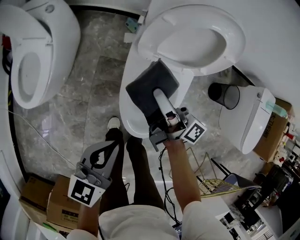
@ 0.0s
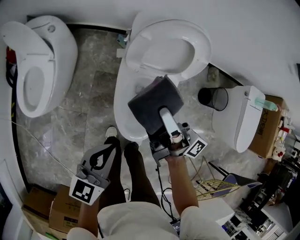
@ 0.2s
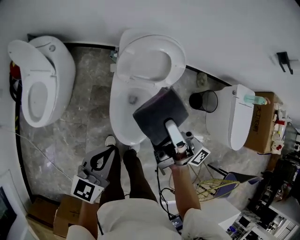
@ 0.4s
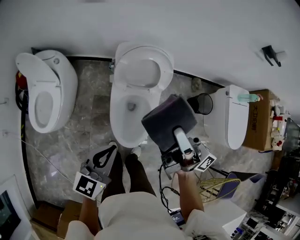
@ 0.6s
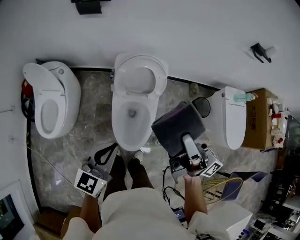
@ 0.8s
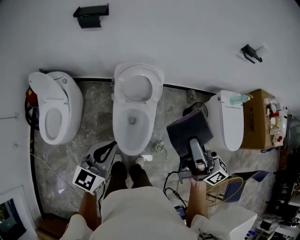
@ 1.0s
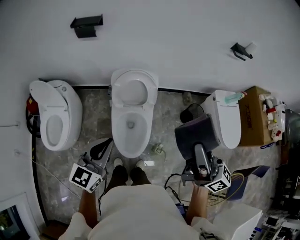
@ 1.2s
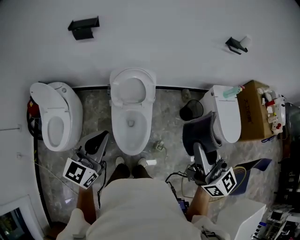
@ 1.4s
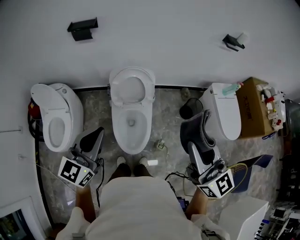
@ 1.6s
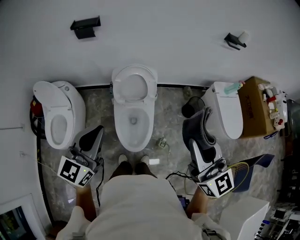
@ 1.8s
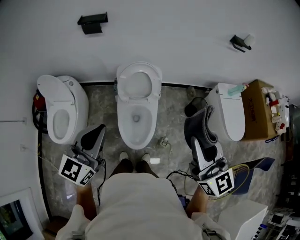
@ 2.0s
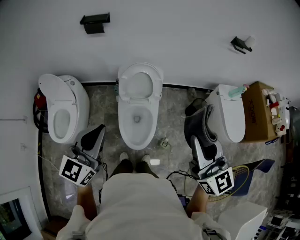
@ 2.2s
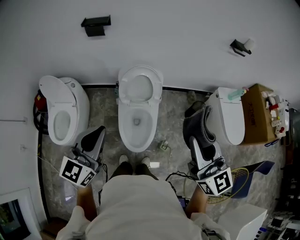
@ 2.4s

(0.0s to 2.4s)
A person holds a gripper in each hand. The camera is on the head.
0.0s - 1.2s: The right gripper moves upward, to the right and backward, about 60 cm, and twists approximately 50 degrees counterclockwise, seen from behind. Meanwhile the left gripper goes some 35 cm upward, and changes its angle by about 30 degrees.
1.2s - 2.4s: The left gripper travels upward by approximately 10 cm. Meanwhile the right gripper is displaced backward by about 5 cm, and swivels some 40 degrees.

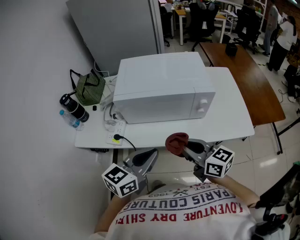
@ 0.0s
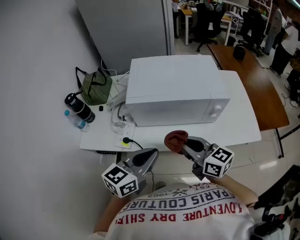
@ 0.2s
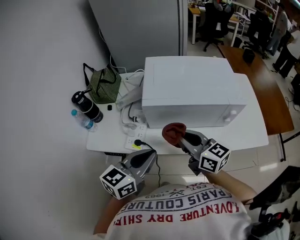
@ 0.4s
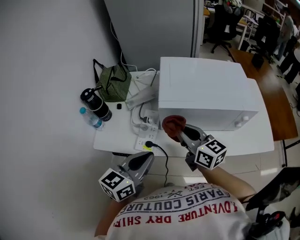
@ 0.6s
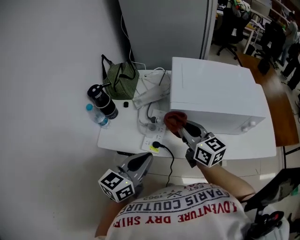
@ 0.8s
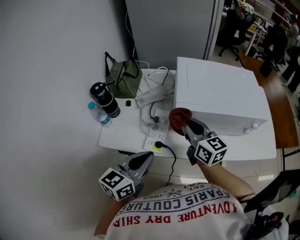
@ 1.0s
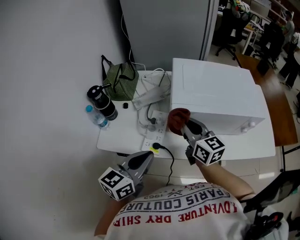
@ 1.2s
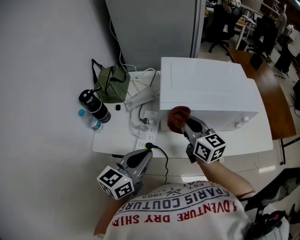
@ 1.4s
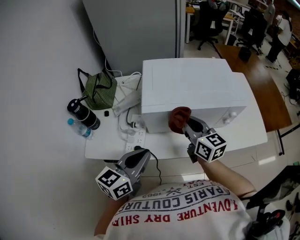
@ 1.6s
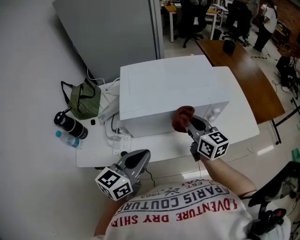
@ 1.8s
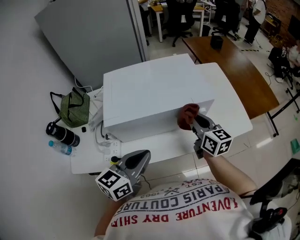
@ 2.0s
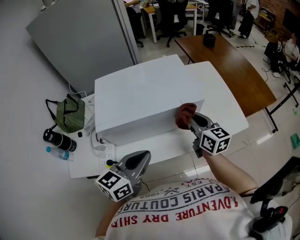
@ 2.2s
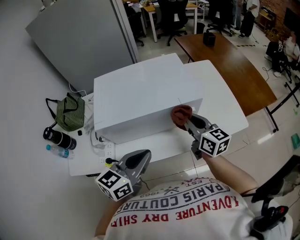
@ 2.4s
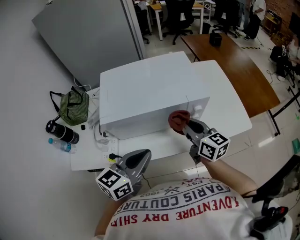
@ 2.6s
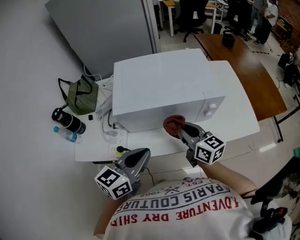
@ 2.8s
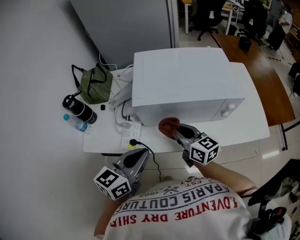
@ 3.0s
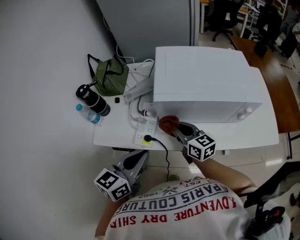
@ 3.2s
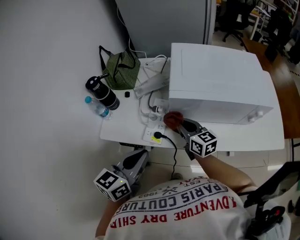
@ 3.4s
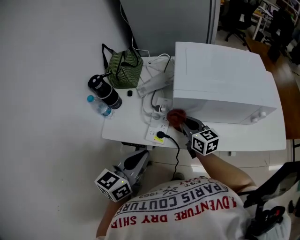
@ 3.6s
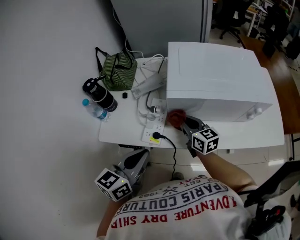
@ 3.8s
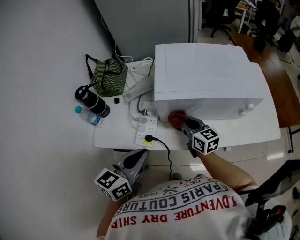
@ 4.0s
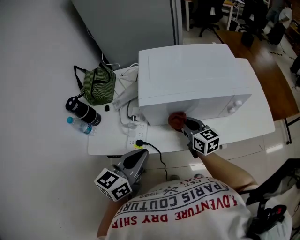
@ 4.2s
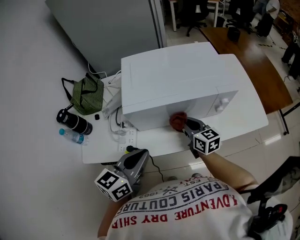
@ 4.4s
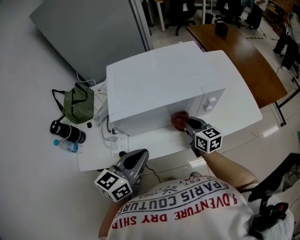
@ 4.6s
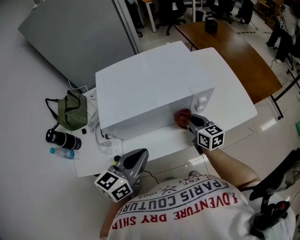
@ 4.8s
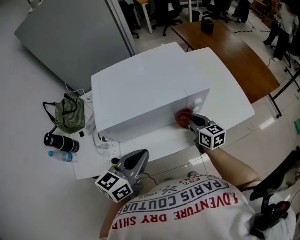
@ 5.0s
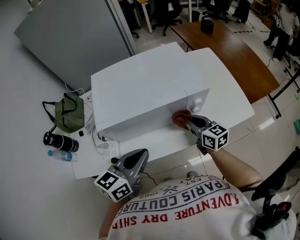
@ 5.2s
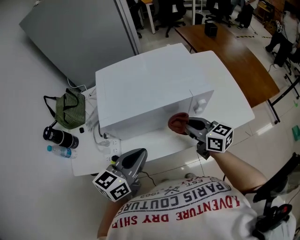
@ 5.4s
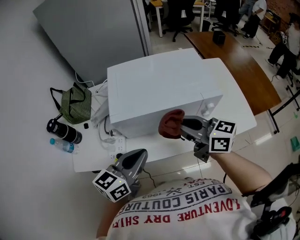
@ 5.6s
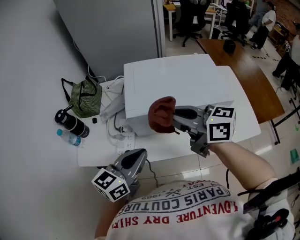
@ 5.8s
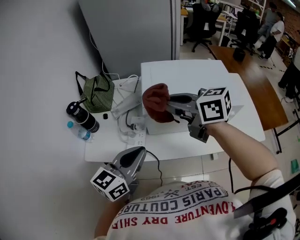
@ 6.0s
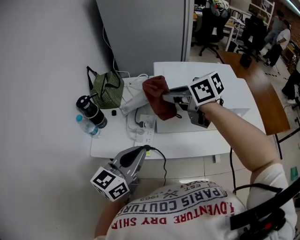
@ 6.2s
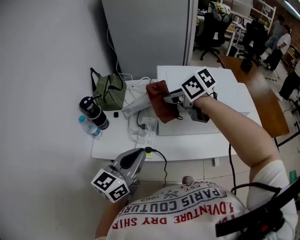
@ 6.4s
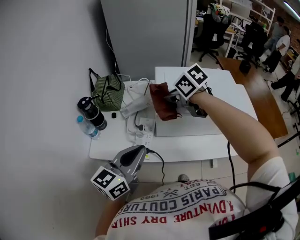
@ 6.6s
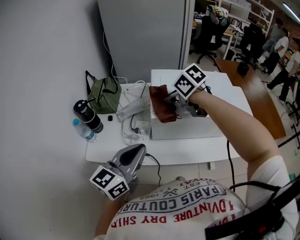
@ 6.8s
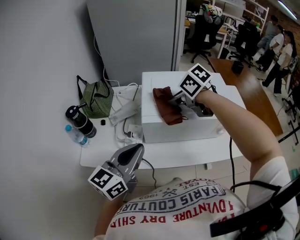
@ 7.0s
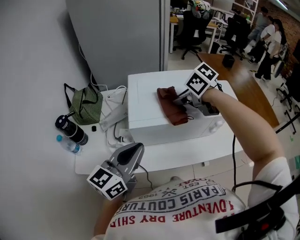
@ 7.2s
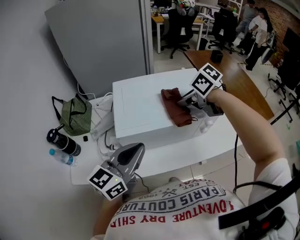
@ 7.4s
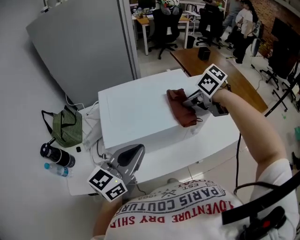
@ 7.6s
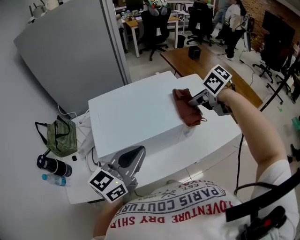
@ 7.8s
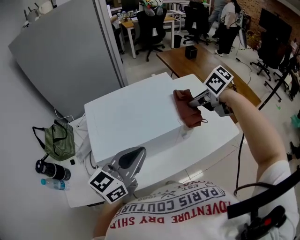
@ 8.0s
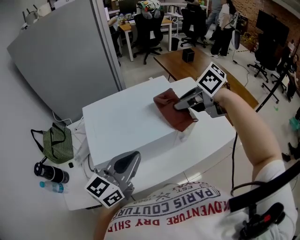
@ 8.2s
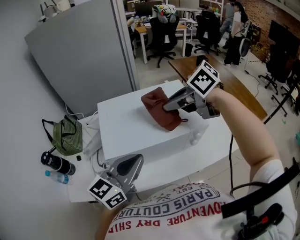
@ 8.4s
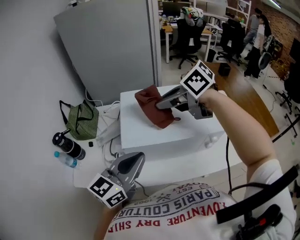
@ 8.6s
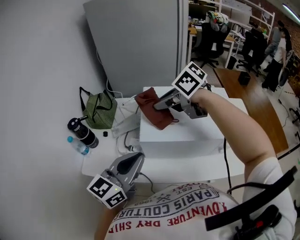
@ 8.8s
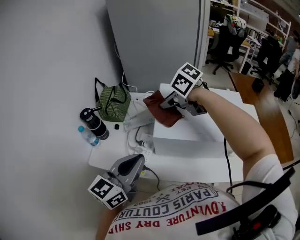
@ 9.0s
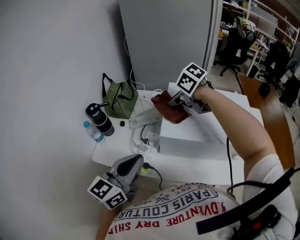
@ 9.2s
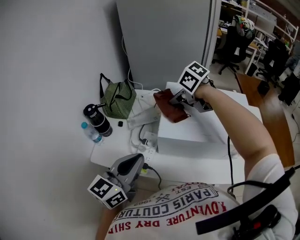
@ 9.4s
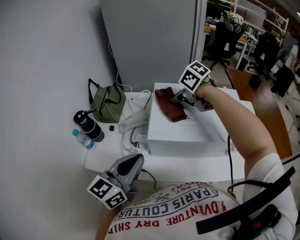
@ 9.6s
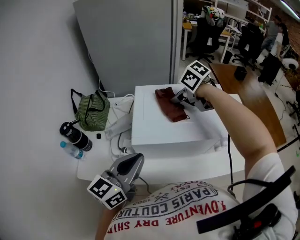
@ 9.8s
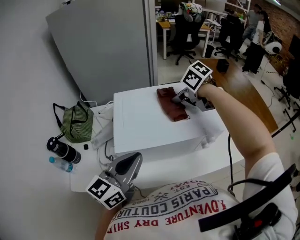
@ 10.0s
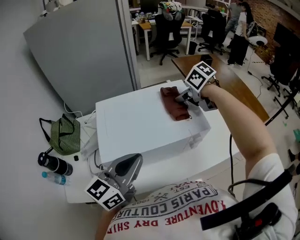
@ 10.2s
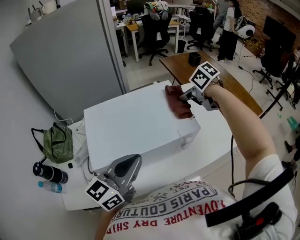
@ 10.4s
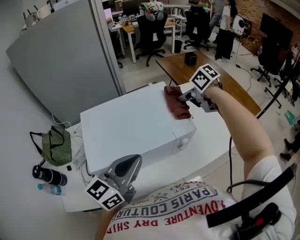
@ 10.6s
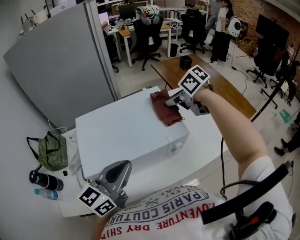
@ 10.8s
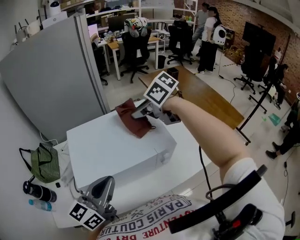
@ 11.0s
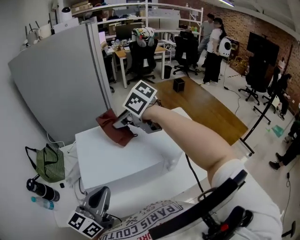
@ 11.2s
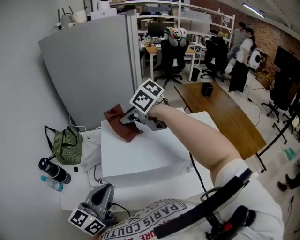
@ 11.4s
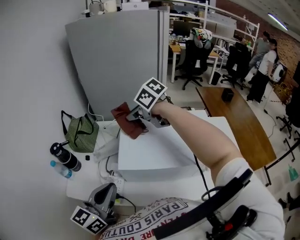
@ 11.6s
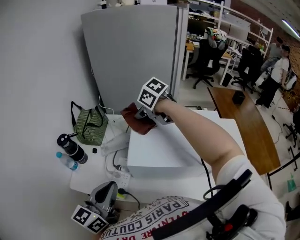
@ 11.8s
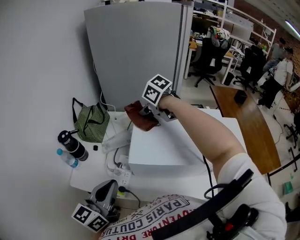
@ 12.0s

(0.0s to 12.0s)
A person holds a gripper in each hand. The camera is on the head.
0.0s - 1.6s: The right gripper moves forward and to the left, approximately 20 cm, and turns by approximately 20 degrees. Meanwhile the left gripper moves to the left and forward, approximately 20 cm.
1.6s - 3.0s: The left gripper travels to the right and back again, about 15 cm each way; the right gripper shifts about 5 cm downward, and moves about 20 cm to the right and comes back.
3.0s - 4.4s: The right gripper goes approximately 10 cm to the right and downward. The left gripper moves about 10 cm to the left and comes back.
4.4s - 6.0s: The right gripper travels upward by some 25 cm, and swivels about 30 degrees; the left gripper changes place by about 10 cm.
6.0s - 7.6s: The left gripper travels to the right by about 15 cm. Meanwhile the right gripper shifts roughly 30 cm to the right, and tips its fingers downward by approximately 40 degrees.
7.6s - 9.0s: The left gripper moves approximately 15 cm, and changes its angle by roughly 30 degrees; the right gripper goes upward and returns, approximately 10 cm each way, and turns by roughly 30 degrees.
9.0s - 10.4s: The left gripper moves some 20 cm, and changes its angle by approximately 30 degrees, while the right gripper shifts by some 40 cm, and rotates about 40 degrees.
10.4s - 12.0s: The left gripper ends up roughly 25 cm from where it was, and changes its angle by some 40 degrees. Meanwhile the right gripper goes upward and returns, approximately 10 cm each way, and changes its angle by roughly 40 degrees.

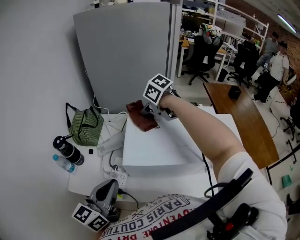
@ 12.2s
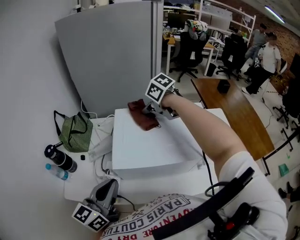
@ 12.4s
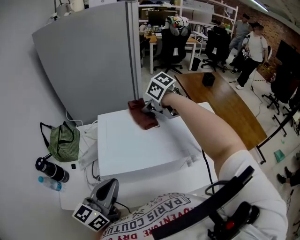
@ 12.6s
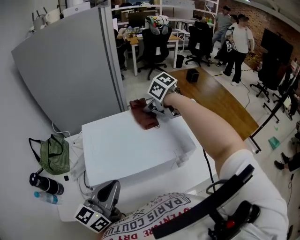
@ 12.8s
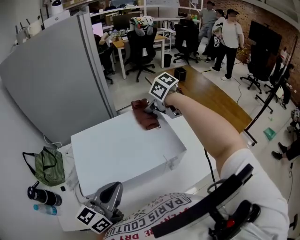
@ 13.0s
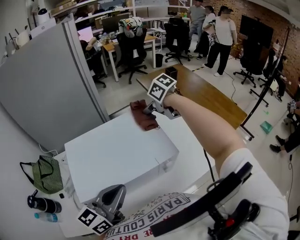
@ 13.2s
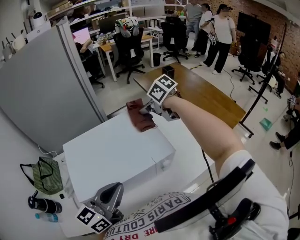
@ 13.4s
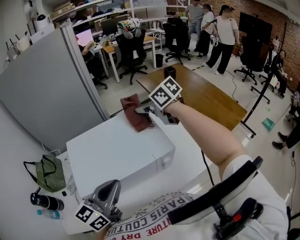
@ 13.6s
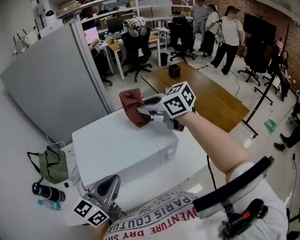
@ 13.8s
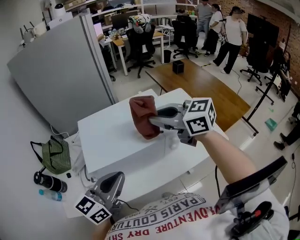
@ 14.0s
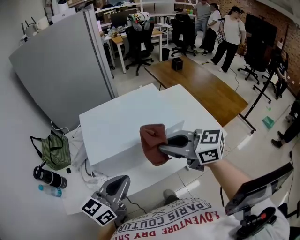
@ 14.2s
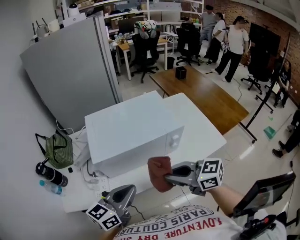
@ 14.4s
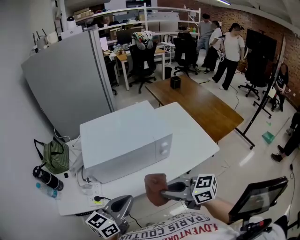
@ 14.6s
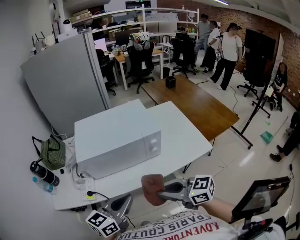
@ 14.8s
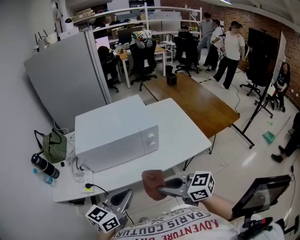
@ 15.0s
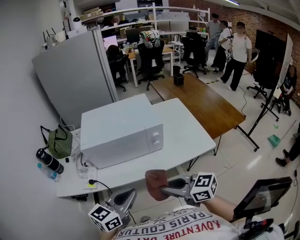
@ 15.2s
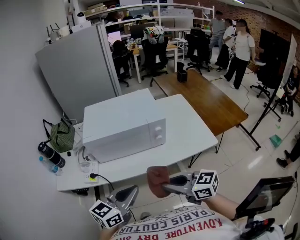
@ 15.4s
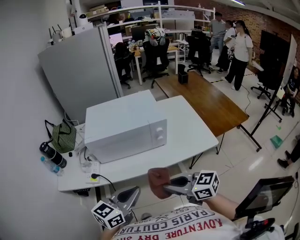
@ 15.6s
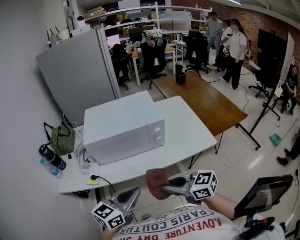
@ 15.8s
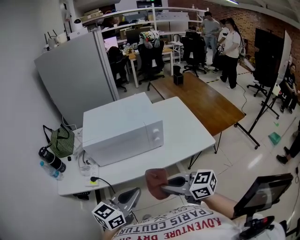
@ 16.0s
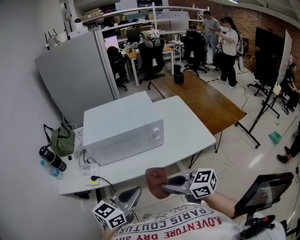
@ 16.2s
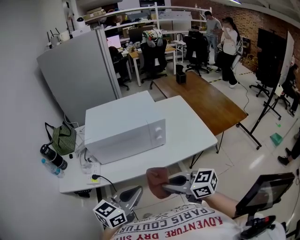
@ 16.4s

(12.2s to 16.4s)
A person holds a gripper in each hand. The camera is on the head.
12.2s - 13.6s: The left gripper changes place by roughly 20 cm, and rotates roughly 30 degrees, while the right gripper moves about 35 cm, and rotates roughly 40 degrees.
13.6s - 15.0s: The right gripper is displaced backward by roughly 50 cm, while the left gripper heads backward, covering about 25 cm.
15.0s - 16.4s: The grippers move only a little.

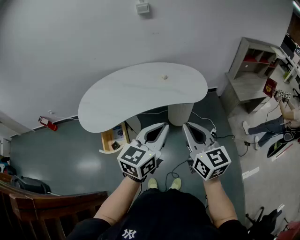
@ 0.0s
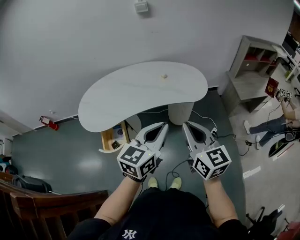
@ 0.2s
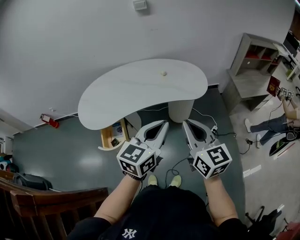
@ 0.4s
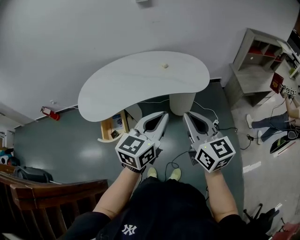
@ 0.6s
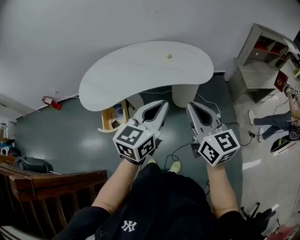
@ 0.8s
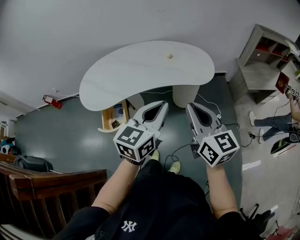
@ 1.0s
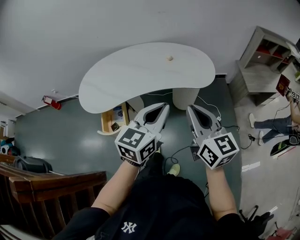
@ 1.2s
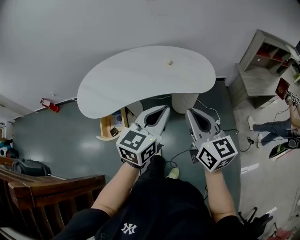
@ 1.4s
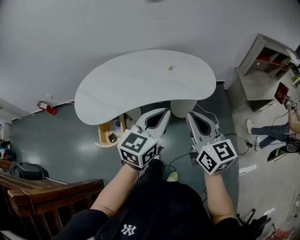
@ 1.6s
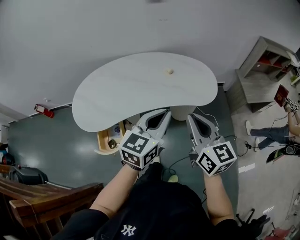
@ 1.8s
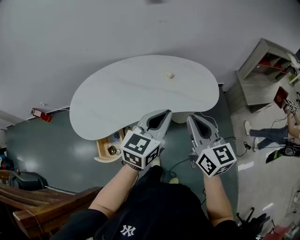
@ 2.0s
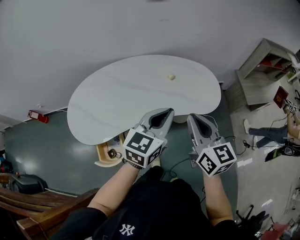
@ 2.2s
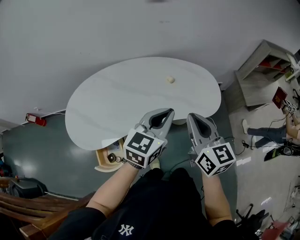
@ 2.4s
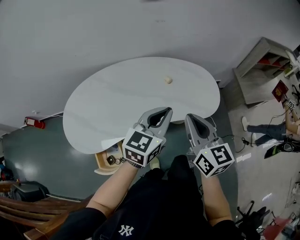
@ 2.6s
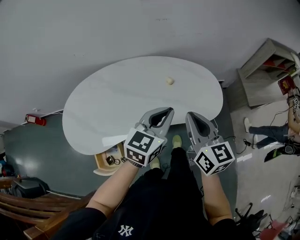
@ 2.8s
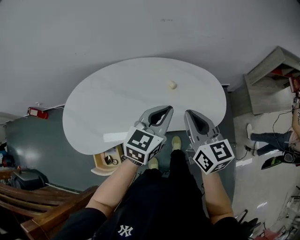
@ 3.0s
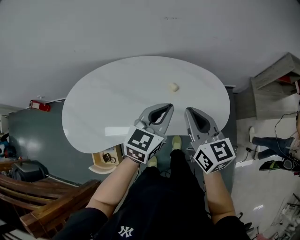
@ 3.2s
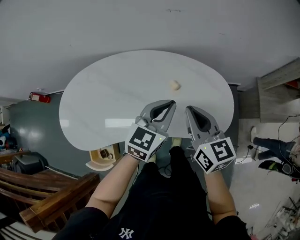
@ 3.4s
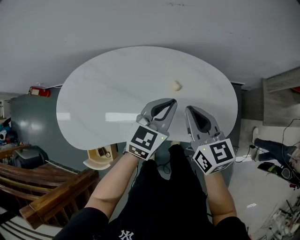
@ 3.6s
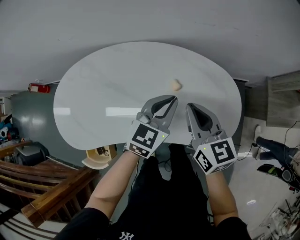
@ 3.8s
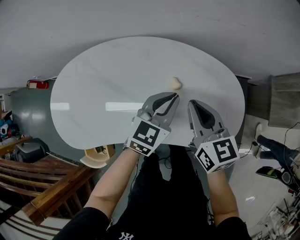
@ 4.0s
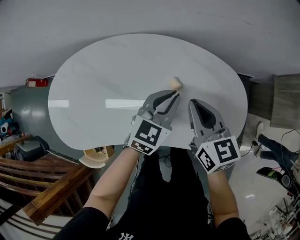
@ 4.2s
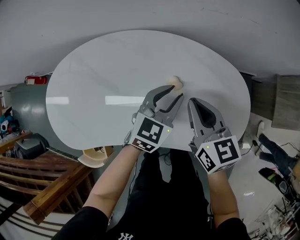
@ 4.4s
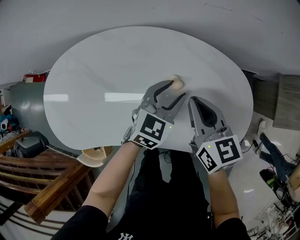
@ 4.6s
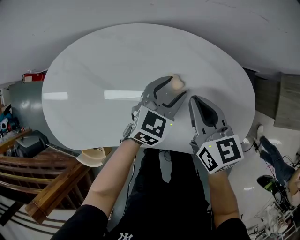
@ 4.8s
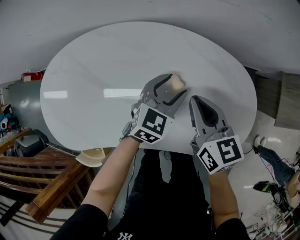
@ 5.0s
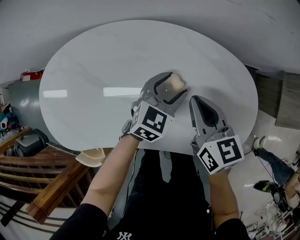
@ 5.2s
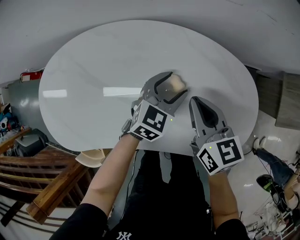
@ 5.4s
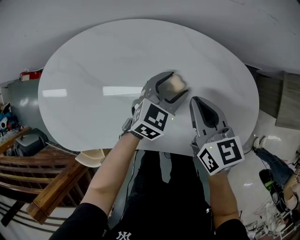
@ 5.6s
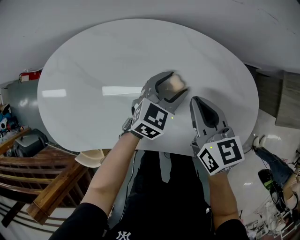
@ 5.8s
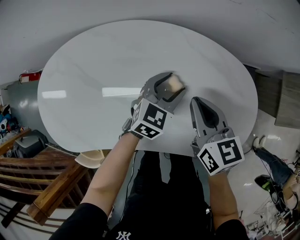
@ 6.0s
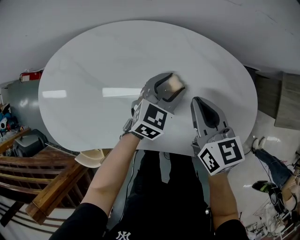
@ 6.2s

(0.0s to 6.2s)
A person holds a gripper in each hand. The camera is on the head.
0.0s - 1.6s: The grippers both shift forward by approximately 10 cm.
1.6s - 3.2s: The two grippers go about 35 cm forward.
3.2s - 4.6s: The two grippers go some 25 cm downward and forward. The left gripper opens.
4.6s - 6.2s: The left gripper shifts roughly 5 cm downward.
